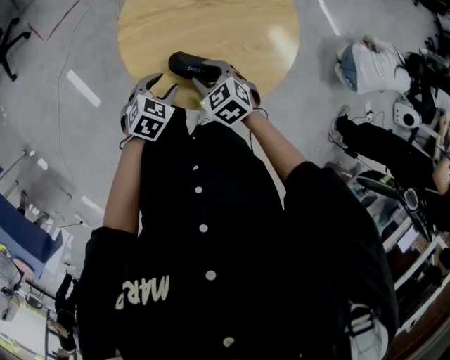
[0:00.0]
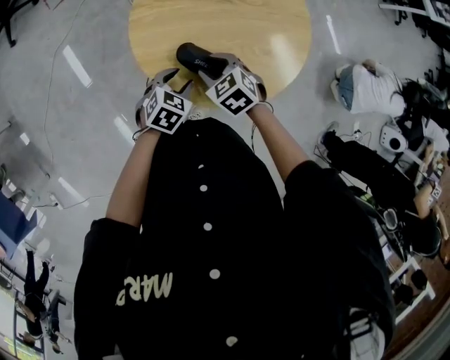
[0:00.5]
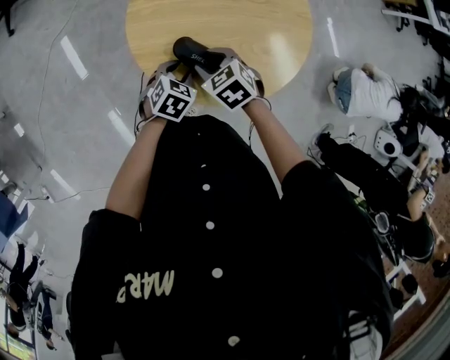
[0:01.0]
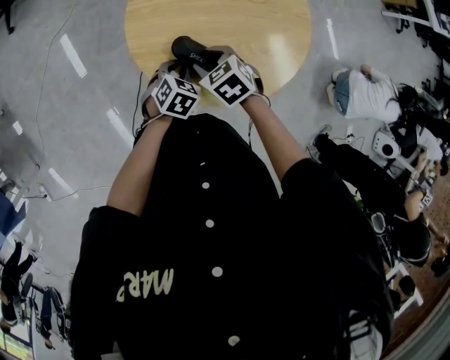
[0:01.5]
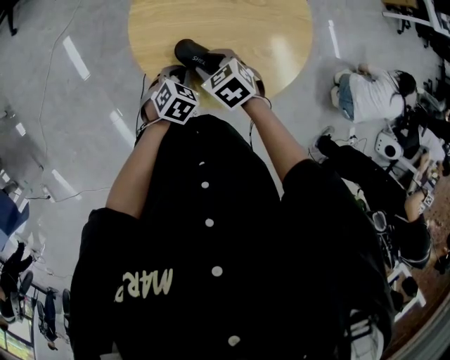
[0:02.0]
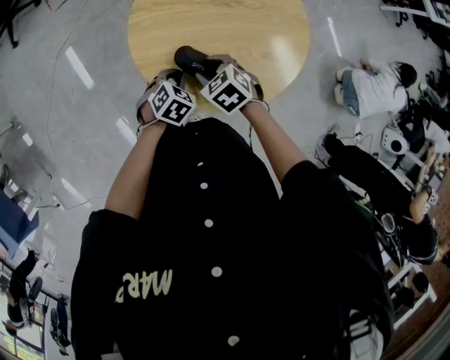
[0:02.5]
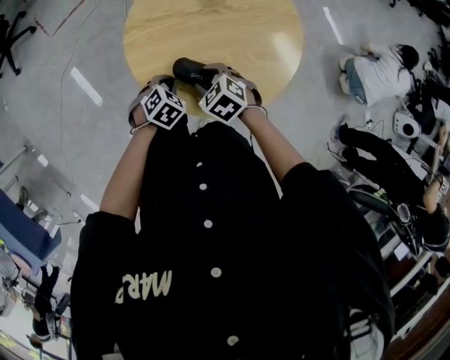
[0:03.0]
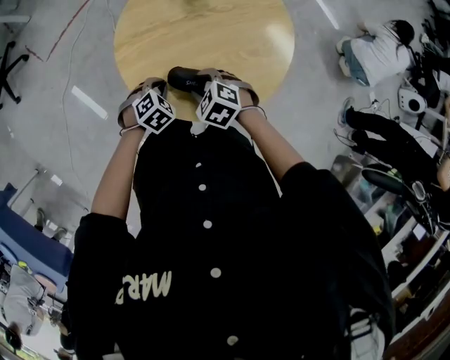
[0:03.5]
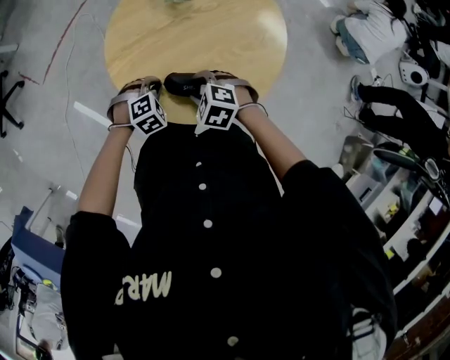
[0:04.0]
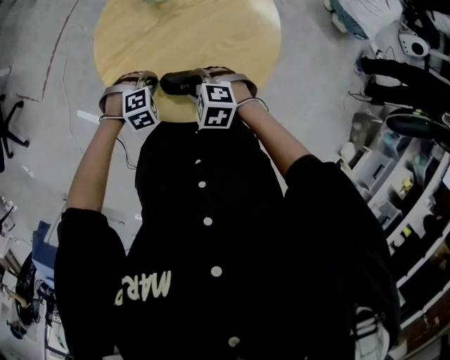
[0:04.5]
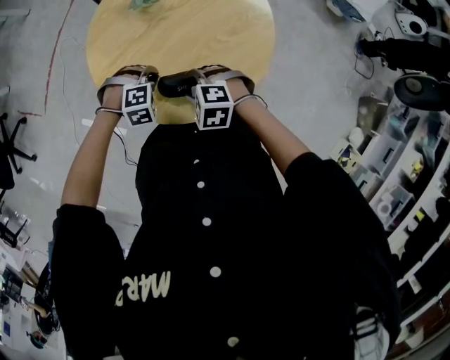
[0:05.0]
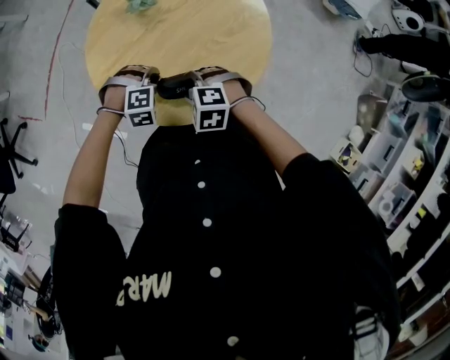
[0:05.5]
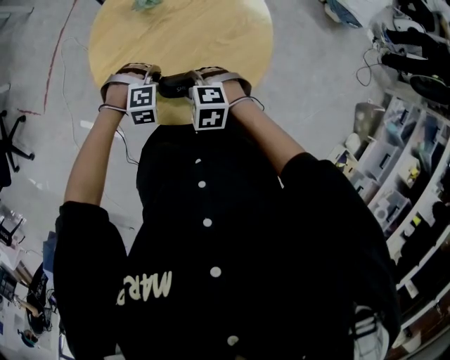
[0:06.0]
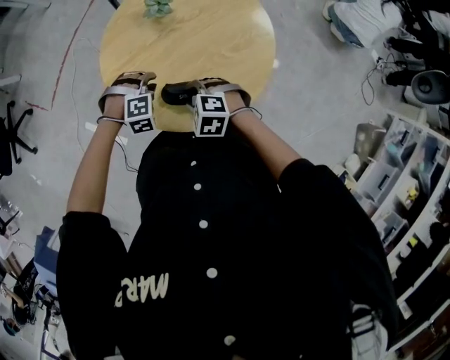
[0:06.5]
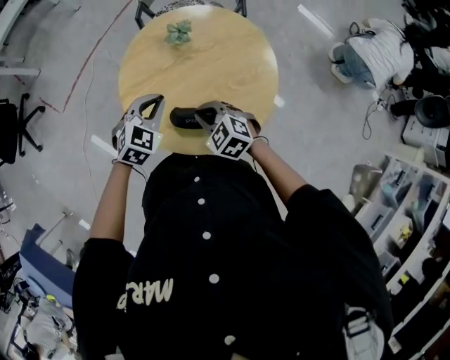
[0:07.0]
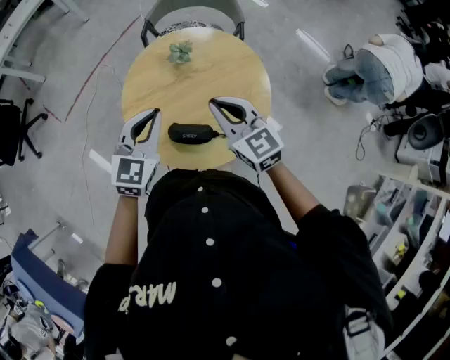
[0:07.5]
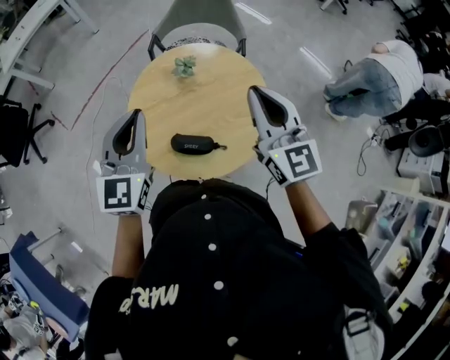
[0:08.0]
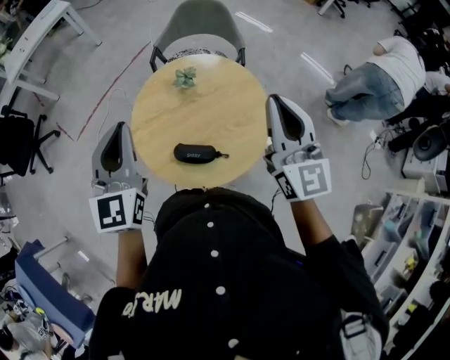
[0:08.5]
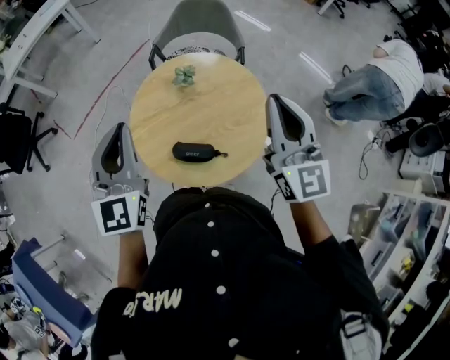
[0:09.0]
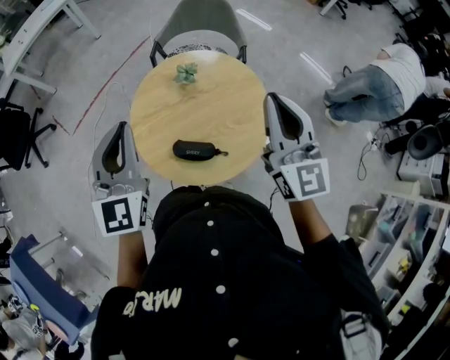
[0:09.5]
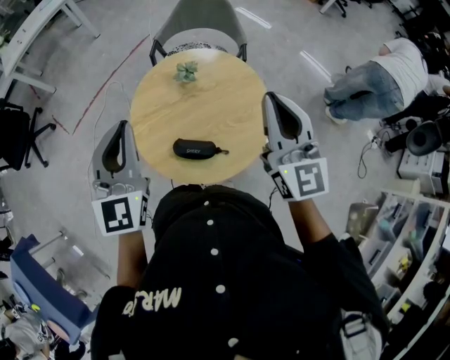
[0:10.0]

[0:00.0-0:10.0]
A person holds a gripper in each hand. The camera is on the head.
0.0 to 2.0 s: The left gripper closes up.
2.0 to 4.0 s: The left gripper shifts roughly 10 cm forward, and twists some 60 degrees clockwise, seen from behind.
4.0 to 6.0 s: The left gripper shifts by some 10 cm, and rotates some 40 degrees.
6.0 to 8.0 s: The right gripper travels upward and to the right by some 40 cm, points its fingers approximately 70 degrees further upward, and closes its fingers. Meanwhile the left gripper goes some 40 cm upward, and tilts its fingers roughly 60 degrees upward.
8.0 to 10.0 s: The left gripper moves some 5 cm.

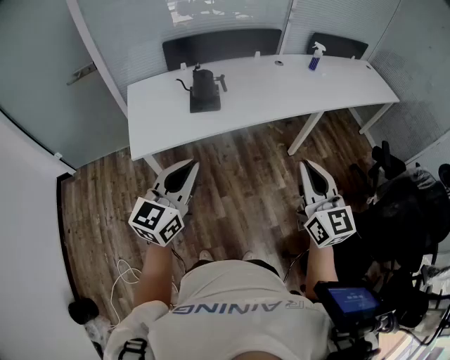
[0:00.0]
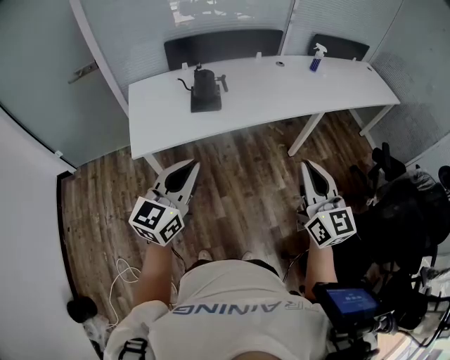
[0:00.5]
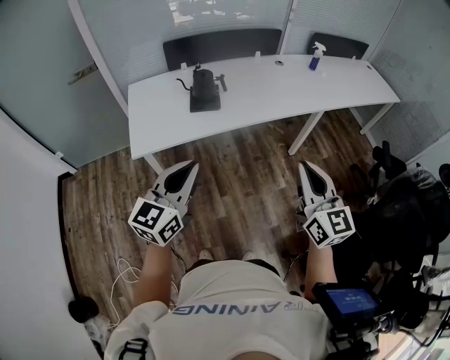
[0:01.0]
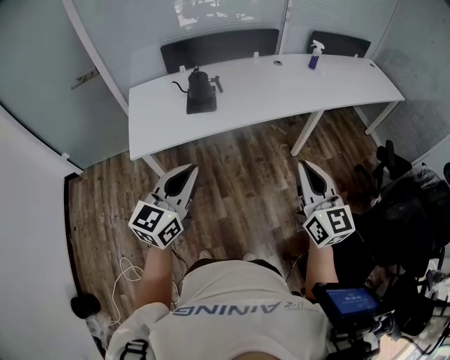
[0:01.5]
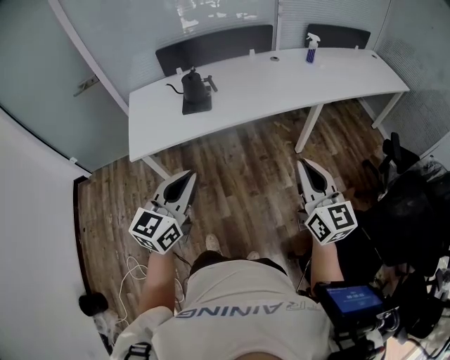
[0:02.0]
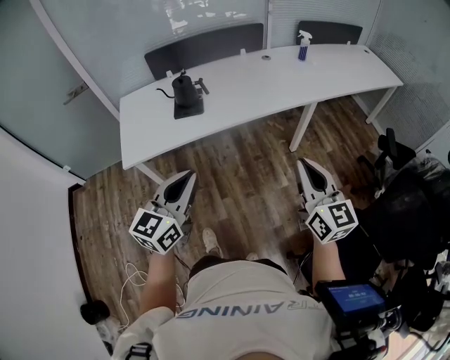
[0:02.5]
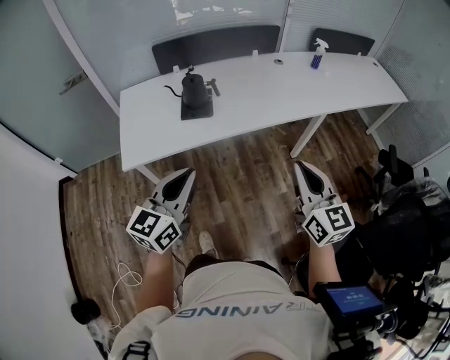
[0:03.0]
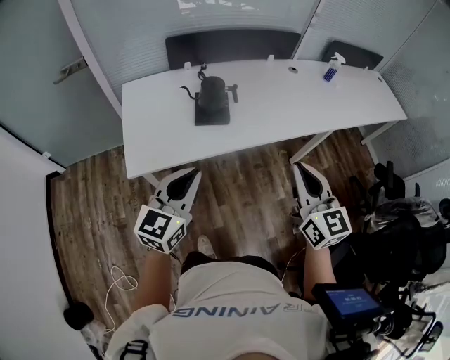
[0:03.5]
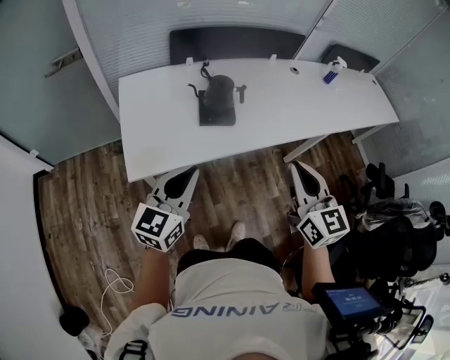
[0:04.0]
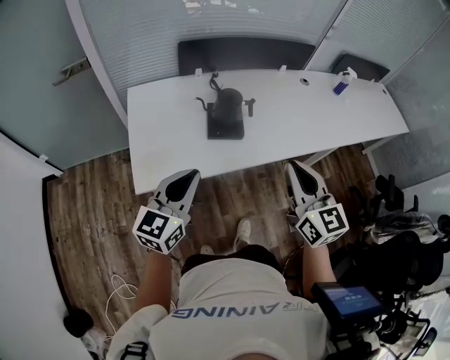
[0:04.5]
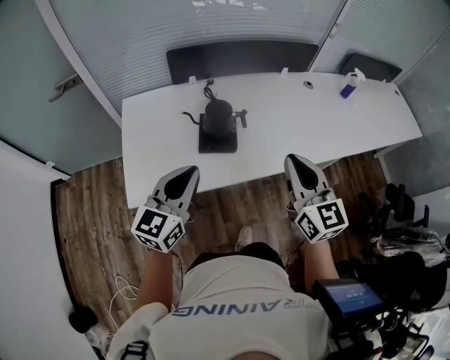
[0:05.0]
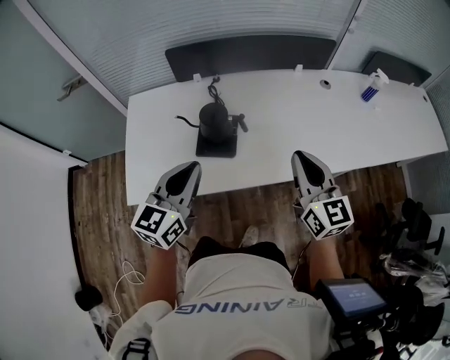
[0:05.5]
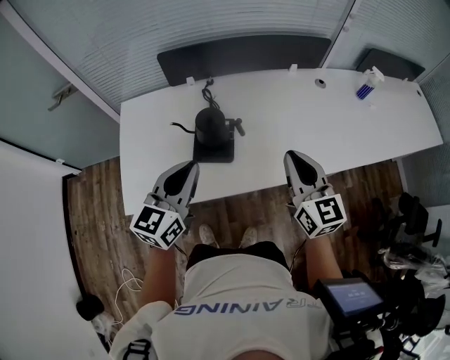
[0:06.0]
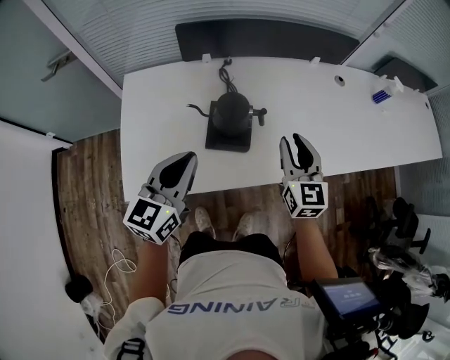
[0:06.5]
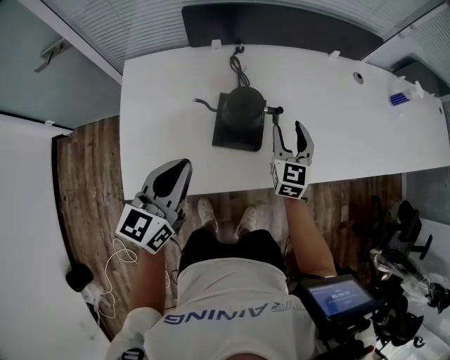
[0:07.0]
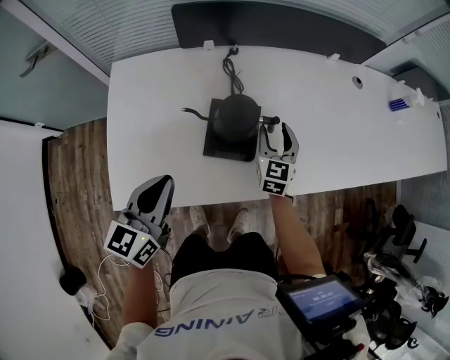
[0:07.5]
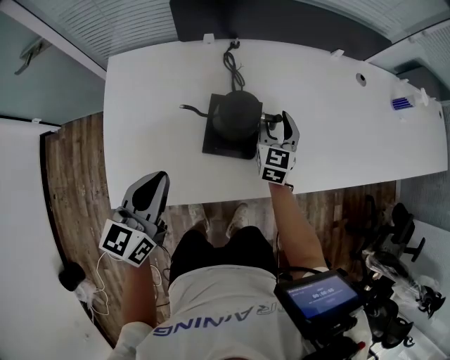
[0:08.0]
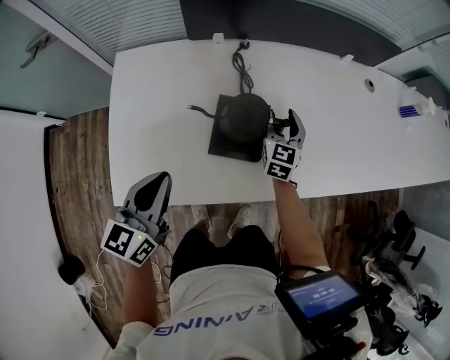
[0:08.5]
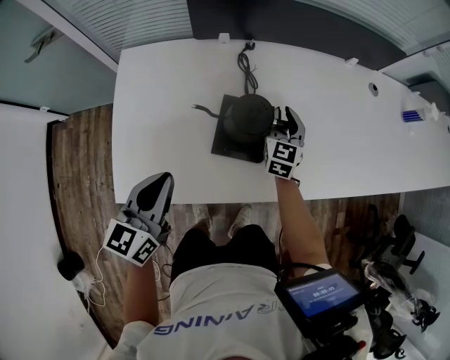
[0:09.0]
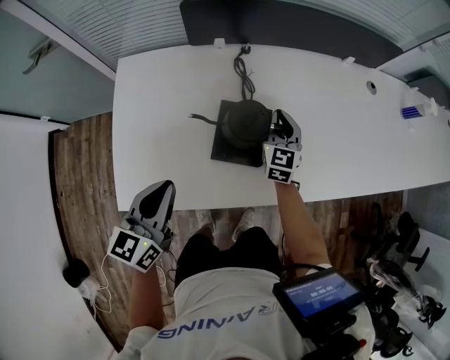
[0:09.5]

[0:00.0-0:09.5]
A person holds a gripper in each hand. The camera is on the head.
0.0 to 2.0 s: Both grippers travel together to the right, roughly 15 cm.
2.0 to 4.0 s: Both grippers move to the left and forward, about 35 cm.
4.0 to 5.5 s: The grippers both shift forward and to the right by some 25 cm.
5.5 to 7.5 s: The left gripper moves to the left and downward, approximately 20 cm, while the right gripper heads downward, forward and to the left, covering roughly 35 cm, rotates about 30 degrees, and opens its fingers.
7.5 to 9.5 s: The right gripper is displaced forward by some 5 cm, and closes.

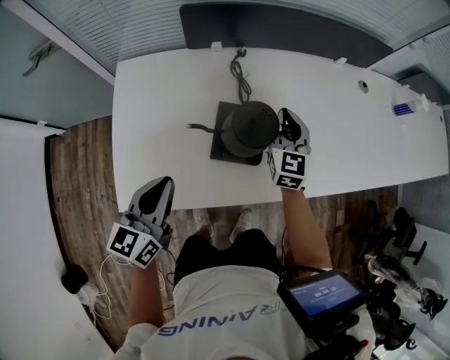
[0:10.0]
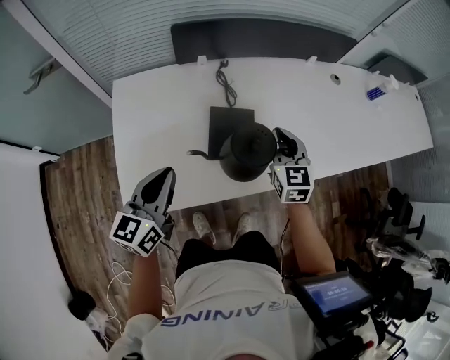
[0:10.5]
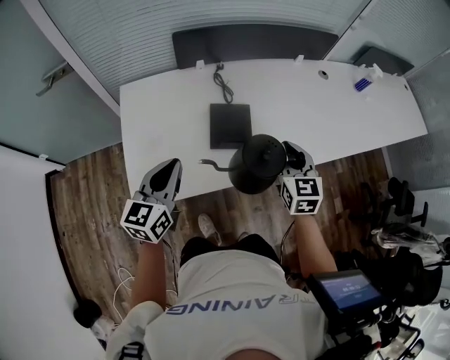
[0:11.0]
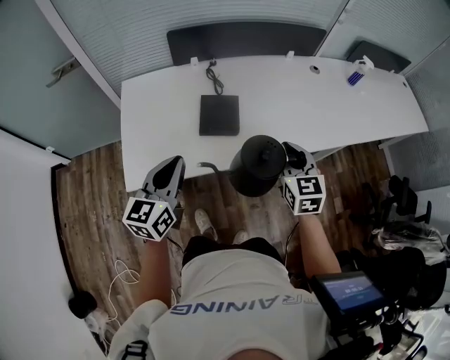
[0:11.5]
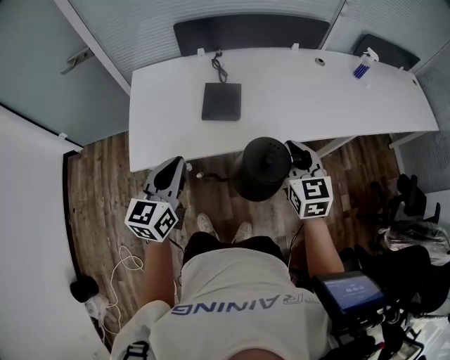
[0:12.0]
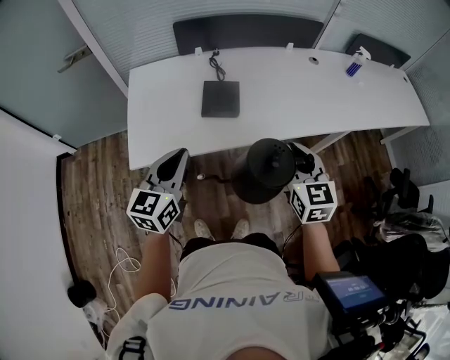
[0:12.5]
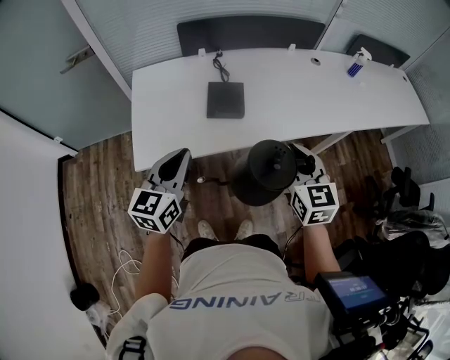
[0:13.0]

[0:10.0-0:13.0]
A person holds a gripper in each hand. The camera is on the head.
10.0 to 11.5 s: The right gripper shifts roughly 35 cm backward, to the right and upward. The left gripper moves backward, upward and to the right, some 15 cm.
11.5 to 13.0 s: The right gripper goes roughly 15 cm backward and upward, while the left gripper heads backward, covering about 10 cm.

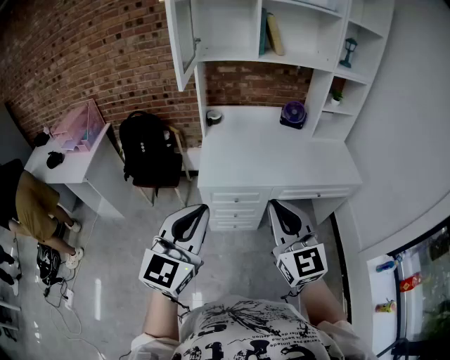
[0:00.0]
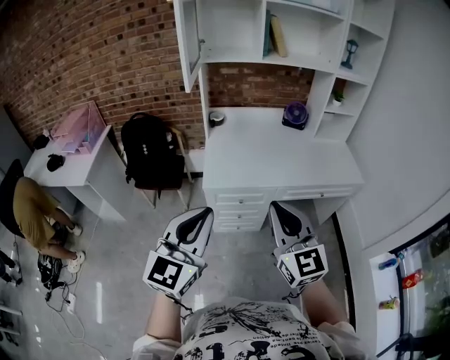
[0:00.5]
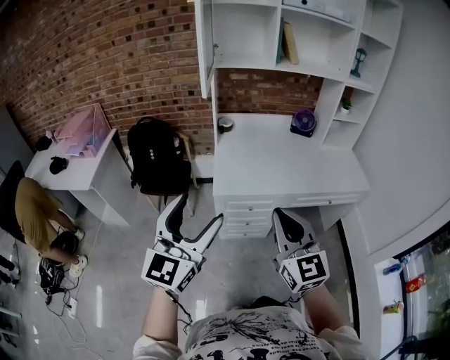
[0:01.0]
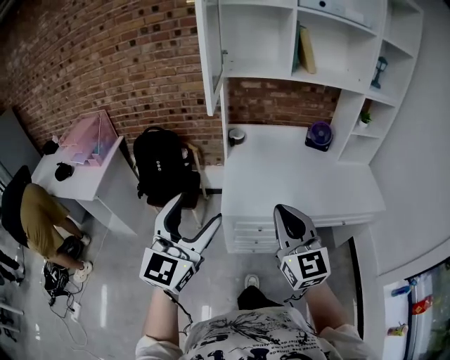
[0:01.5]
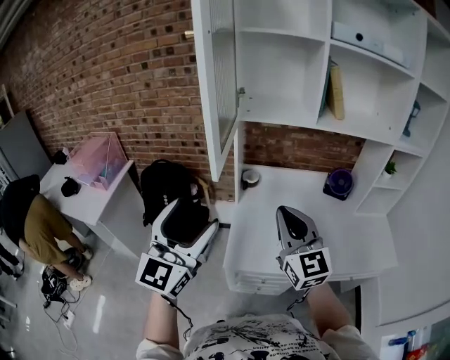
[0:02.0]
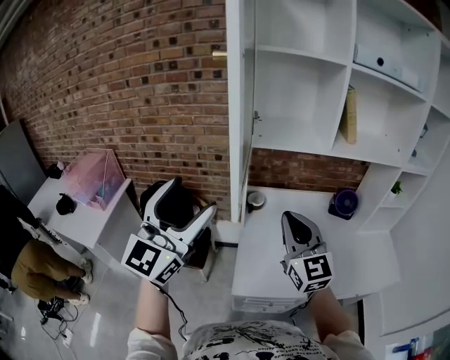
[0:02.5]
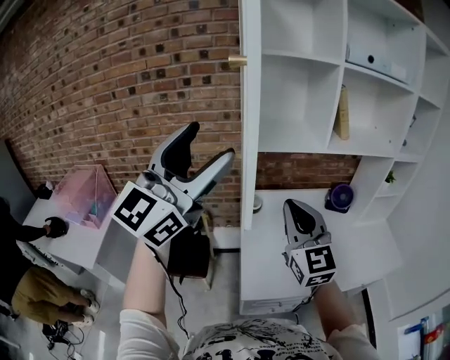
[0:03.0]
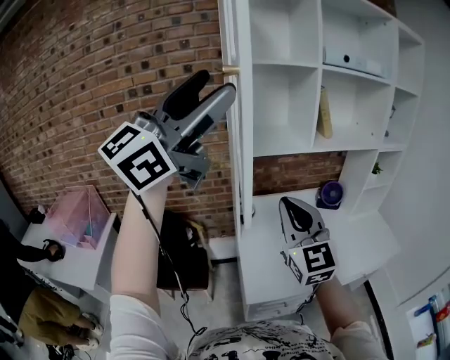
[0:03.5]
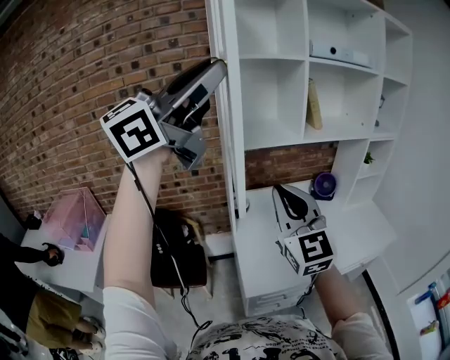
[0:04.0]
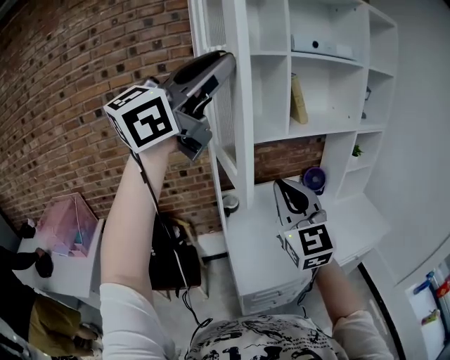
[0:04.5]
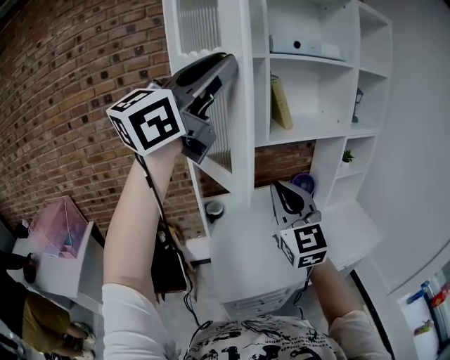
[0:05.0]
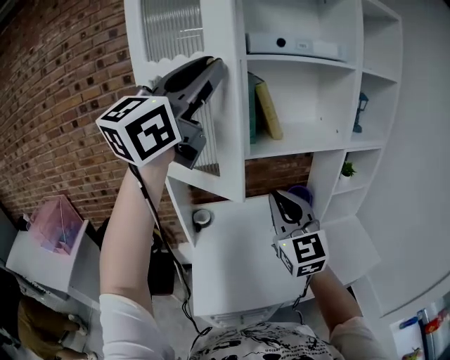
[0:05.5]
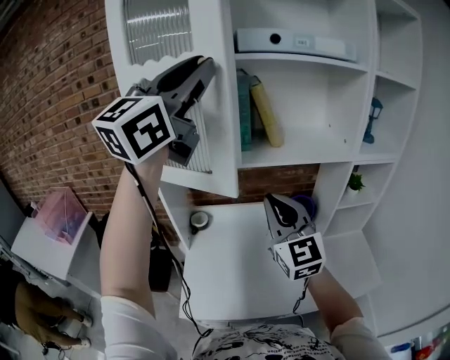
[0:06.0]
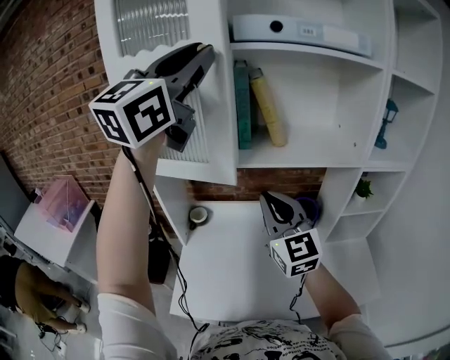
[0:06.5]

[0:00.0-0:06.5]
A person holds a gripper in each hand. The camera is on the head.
0.0 to 2.0 s: The left gripper shifts approximately 35 cm forward and to the left, and opens up. The right gripper moves forward, some 35 cm.
2.0 to 4.5 s: The right gripper goes approximately 10 cm upward, and changes its angle by some 30 degrees, while the left gripper is displaced upward by some 35 cm, swivels roughly 50 degrees, and closes.
4.5 to 6.5 s: The right gripper ends up some 35 cm from where it was, and swivels about 20 degrees, while the left gripper ends up roughly 35 cm from where it was, and swivels about 40 degrees.
